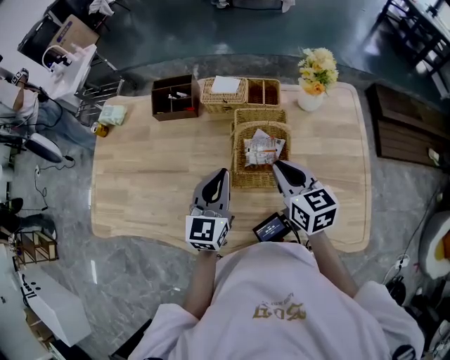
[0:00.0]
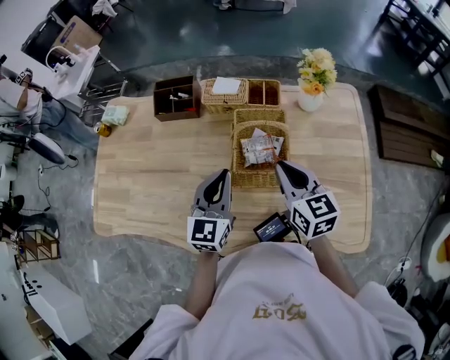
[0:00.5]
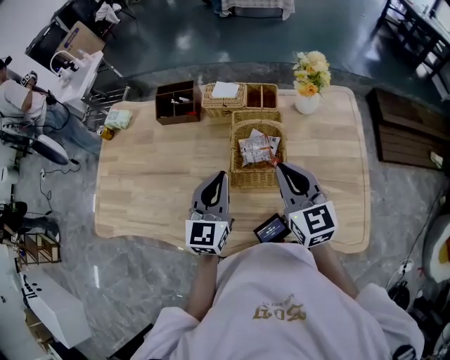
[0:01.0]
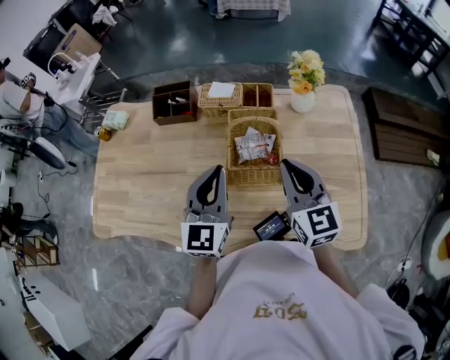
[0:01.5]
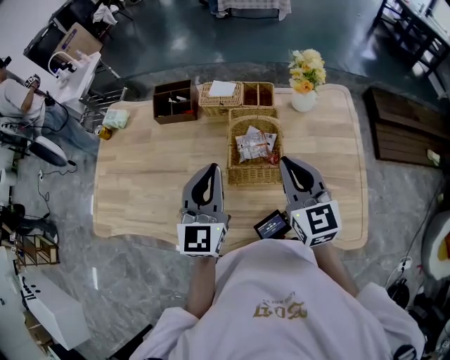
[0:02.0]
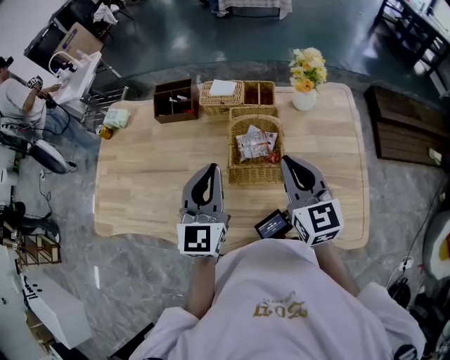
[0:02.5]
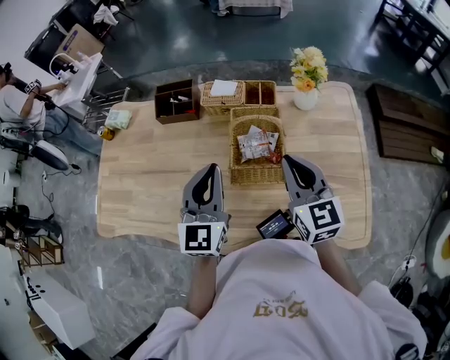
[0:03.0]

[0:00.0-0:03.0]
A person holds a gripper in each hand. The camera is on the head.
0.0 to 1.5 s: The grippers both shift upward by approximately 10 cm. The right gripper swivels some 20 degrees.
1.5 to 3.0 s: The grippers make only small movements.

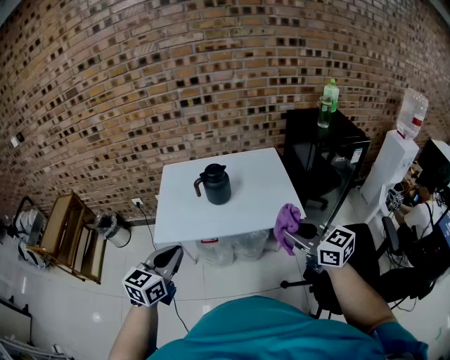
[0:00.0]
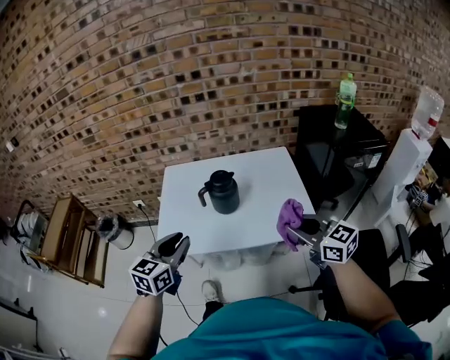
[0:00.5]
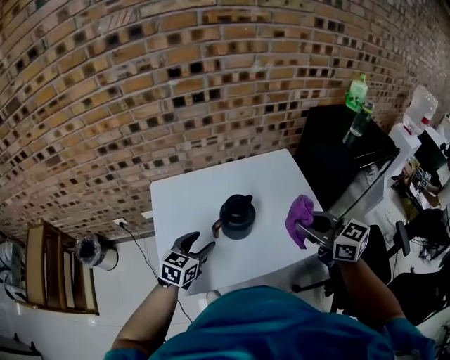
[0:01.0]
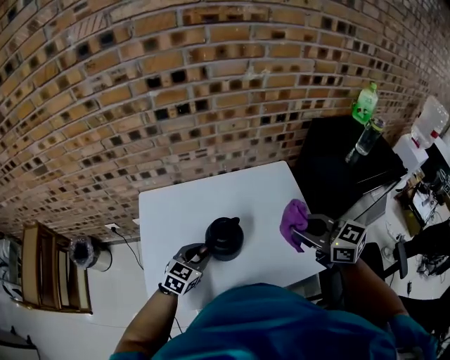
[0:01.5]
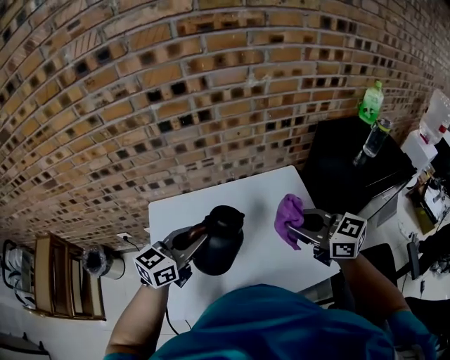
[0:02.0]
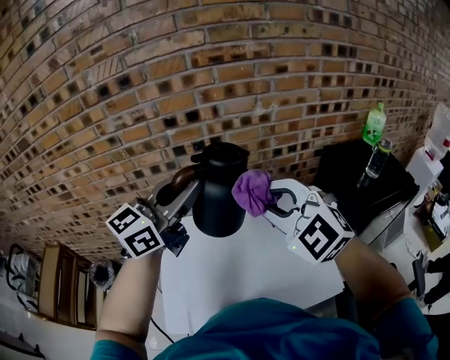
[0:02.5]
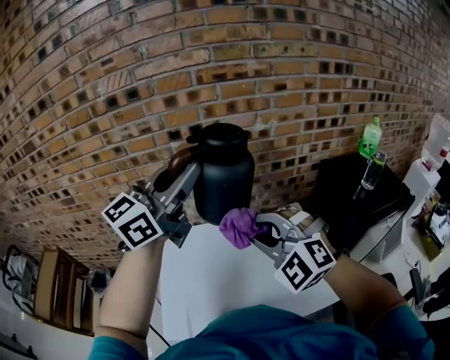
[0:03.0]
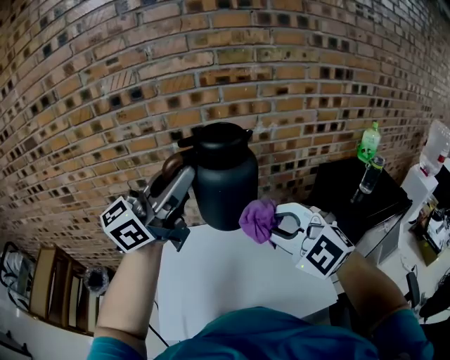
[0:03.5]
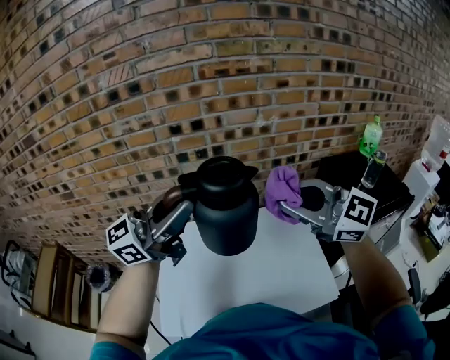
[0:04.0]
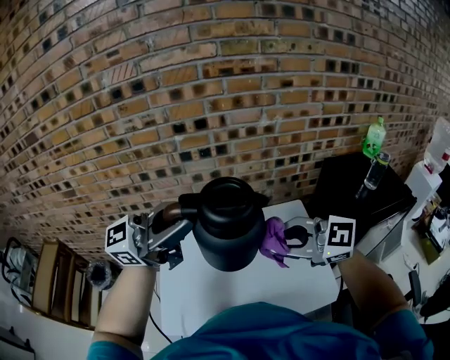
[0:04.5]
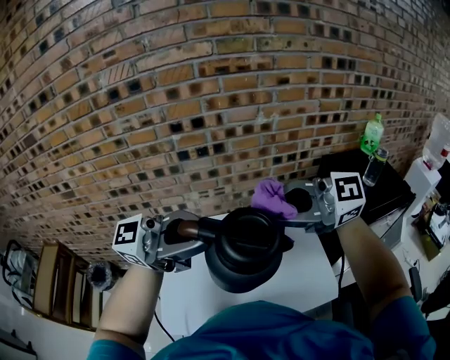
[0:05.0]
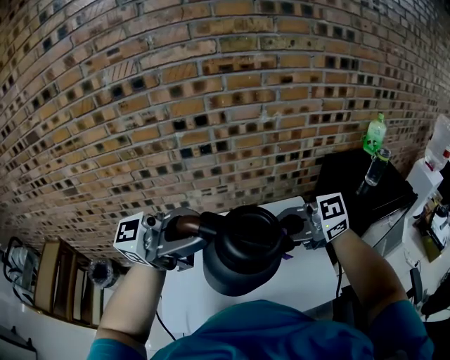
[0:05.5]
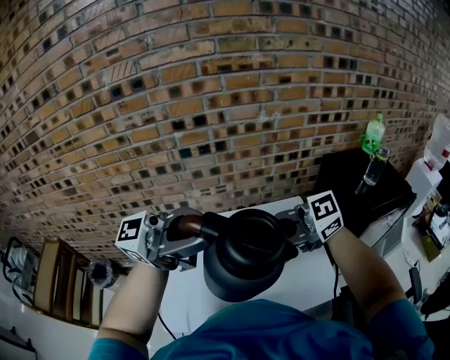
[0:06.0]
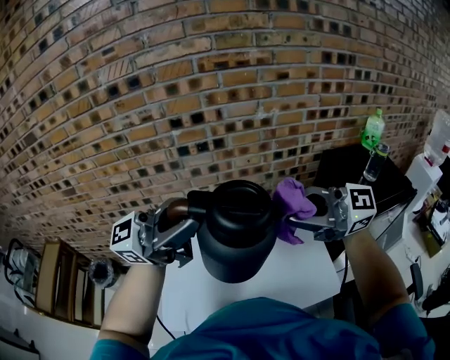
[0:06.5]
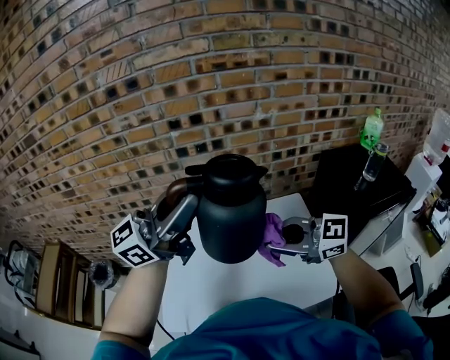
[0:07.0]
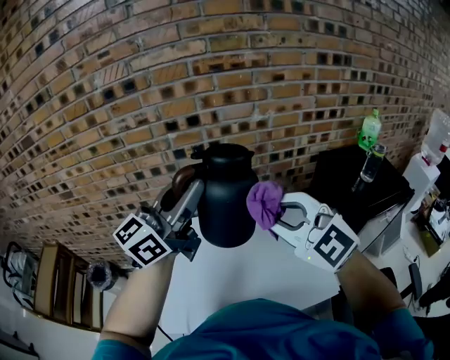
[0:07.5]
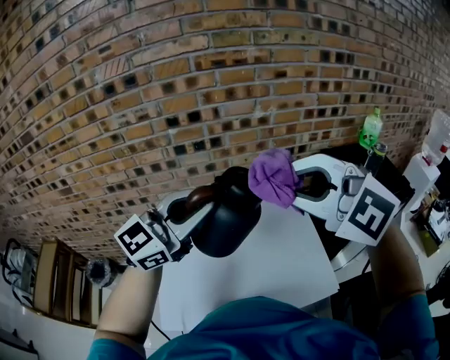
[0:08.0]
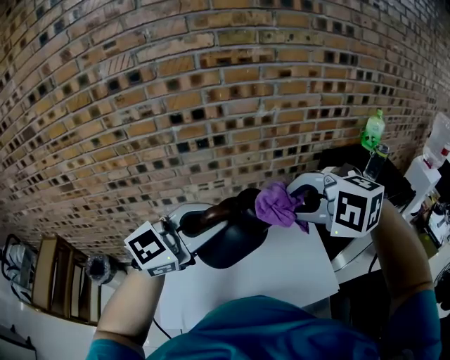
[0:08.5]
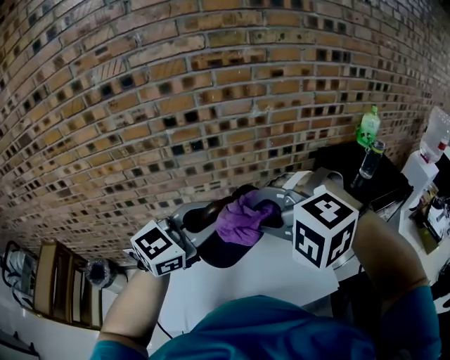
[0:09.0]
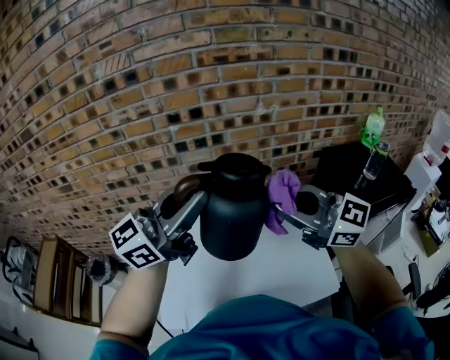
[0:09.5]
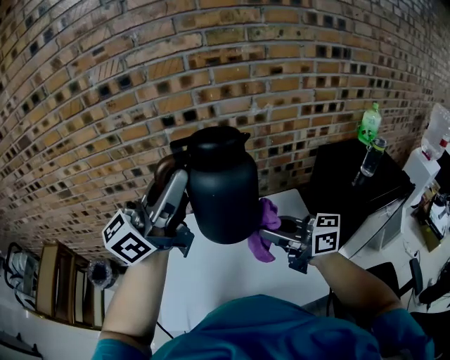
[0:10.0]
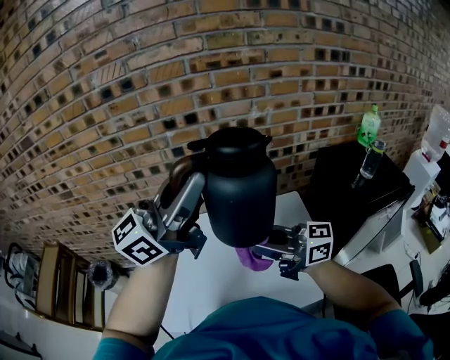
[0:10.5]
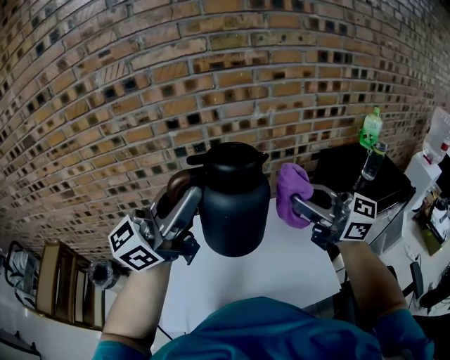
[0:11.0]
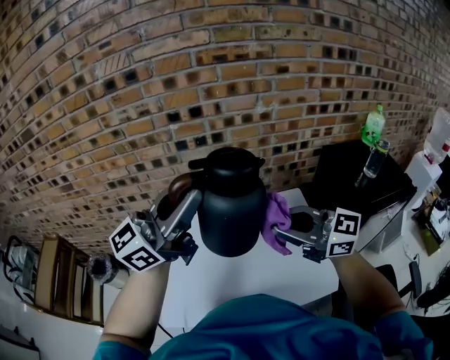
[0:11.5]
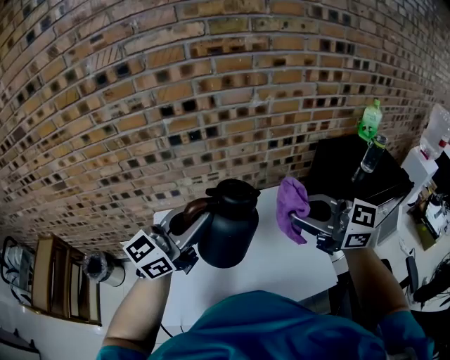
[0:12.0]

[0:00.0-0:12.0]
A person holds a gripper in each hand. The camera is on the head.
0.0 to 2.0 s: The grippers both shift forward by roughly 40 cm. The left gripper turns by about 20 degrees, and opens, then closes once more.
2.0 to 4.0 s: The two grippers go roughly 25 cm upward. The left gripper tips its fingers upward by approximately 30 degrees, while the right gripper turns by about 30 degrees.
4.0 to 6.0 s: The right gripper moves up and down over roughly 10 cm, changing direction 2 times, and rotates some 40 degrees. Meanwhile the left gripper ends up approximately 10 cm from where it was, and swivels approximately 30 degrees.
6.0 to 8.0 s: The left gripper changes place by about 10 cm, and turns by roughly 50 degrees; the right gripper moves up and down over about 20 cm, changing direction 2 times, and swivels approximately 60 degrees.
8.0 to 10.0 s: The right gripper moves downward, about 20 cm, and rolls clockwise, seen from behind, by about 70 degrees. The left gripper travels upward by some 5 cm, and rotates about 30 degrees.
10.0 to 12.0 s: The left gripper heads downward, covering some 15 cm. The right gripper changes its angle by some 20 degrees.

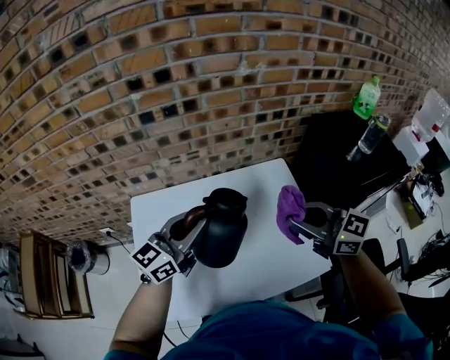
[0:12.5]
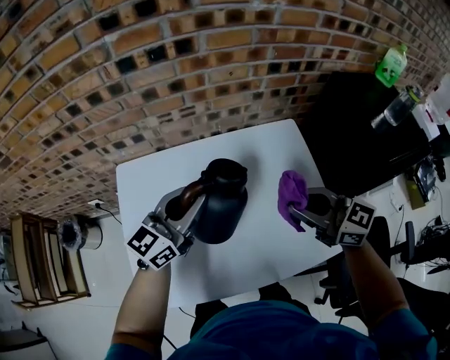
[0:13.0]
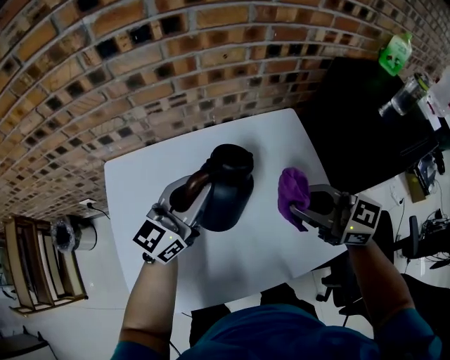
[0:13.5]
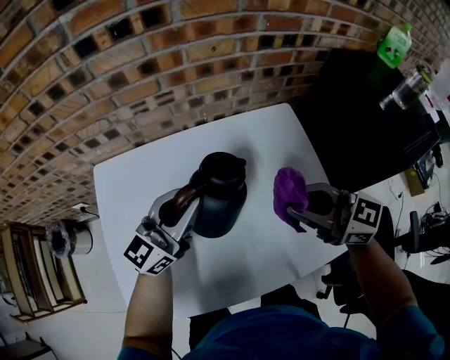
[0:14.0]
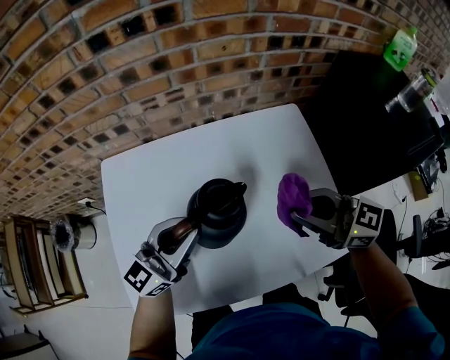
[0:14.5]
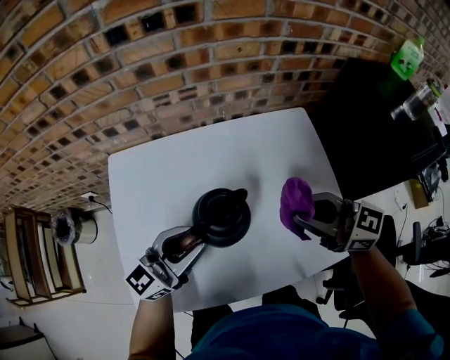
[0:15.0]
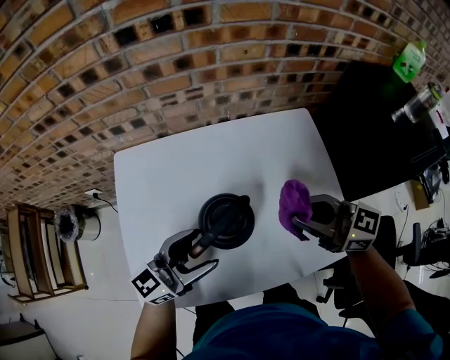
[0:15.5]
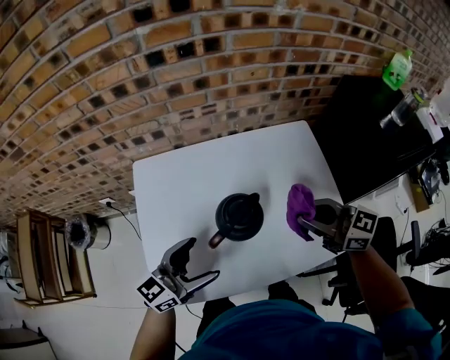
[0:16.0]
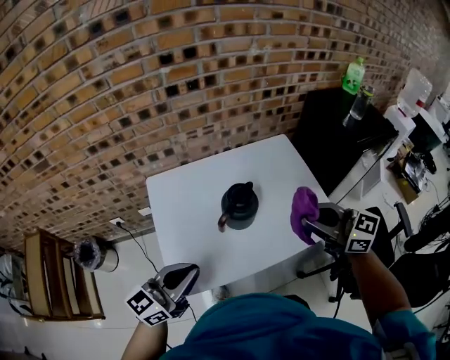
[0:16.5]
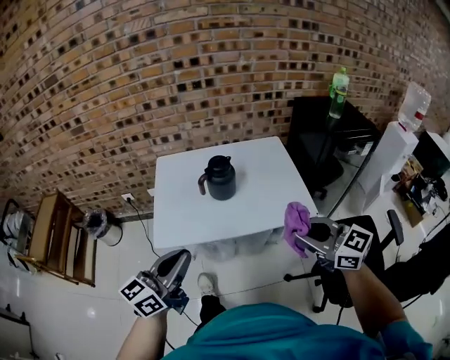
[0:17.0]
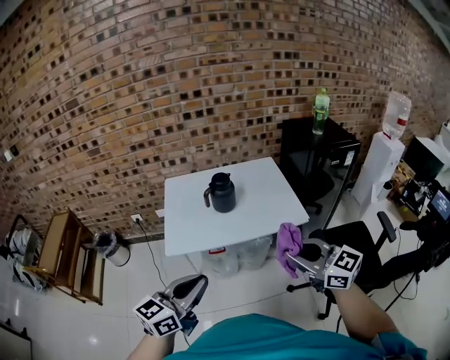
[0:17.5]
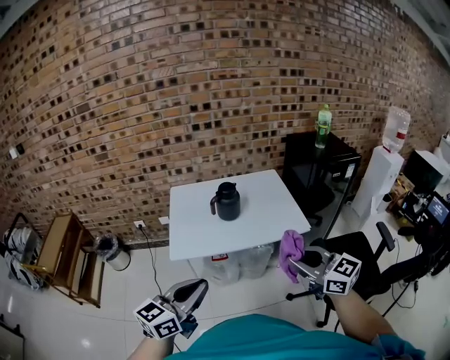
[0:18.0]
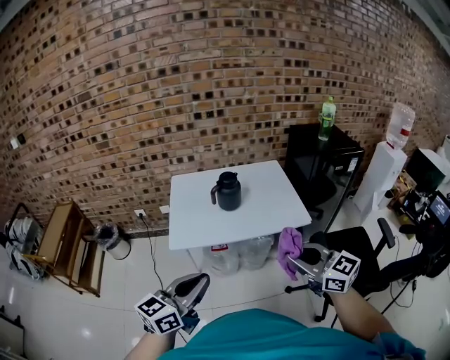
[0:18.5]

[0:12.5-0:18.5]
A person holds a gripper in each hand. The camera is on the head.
12.5 to 14.5 s: Both grippers move downward, some 15 cm.
14.5 to 16.5 s: The right gripper shifts approximately 20 cm backward and upward. Meanwhile the left gripper travels backward, to the left and upward by approximately 25 cm, and opens, then closes again.
16.5 to 18.5 s: The grippers both shift backward by approximately 35 cm.

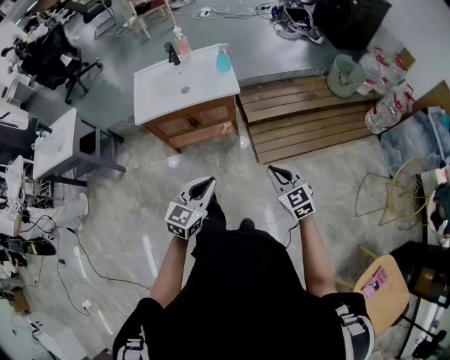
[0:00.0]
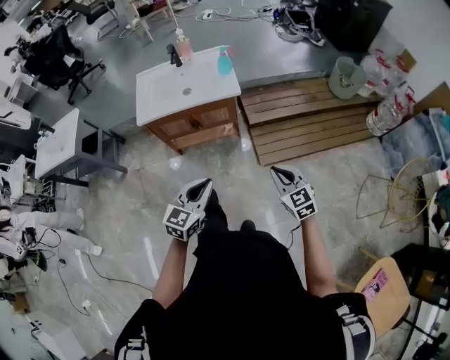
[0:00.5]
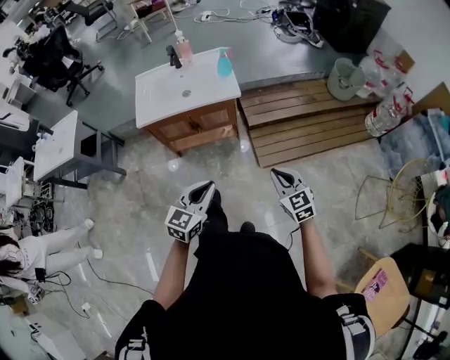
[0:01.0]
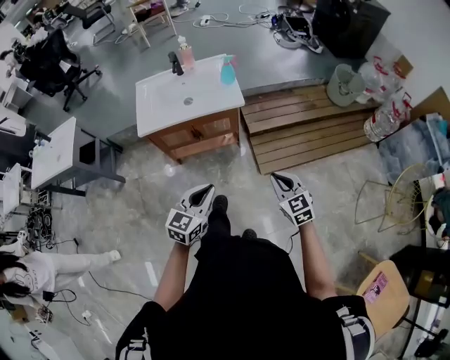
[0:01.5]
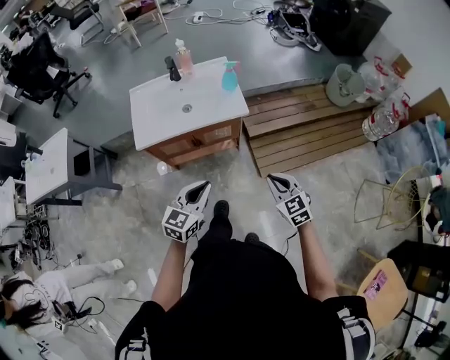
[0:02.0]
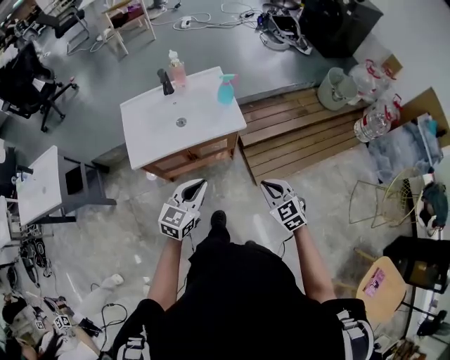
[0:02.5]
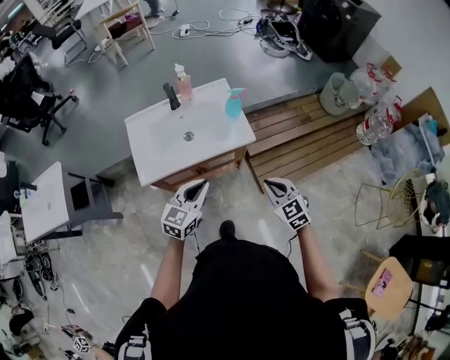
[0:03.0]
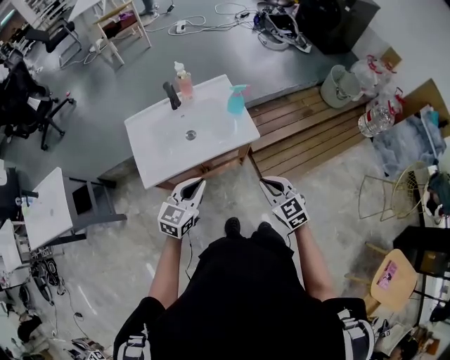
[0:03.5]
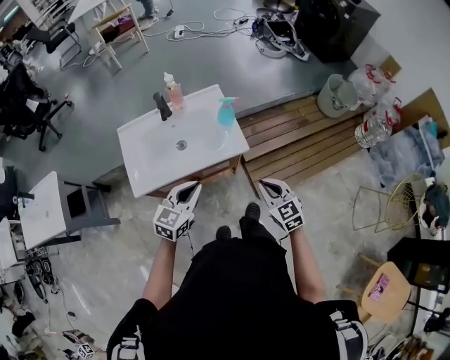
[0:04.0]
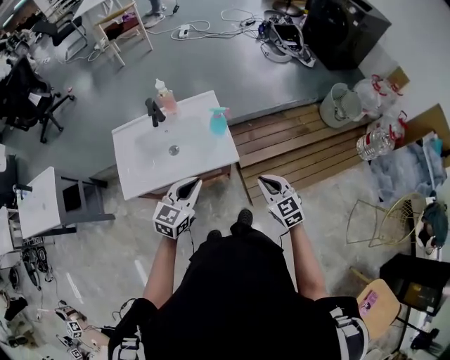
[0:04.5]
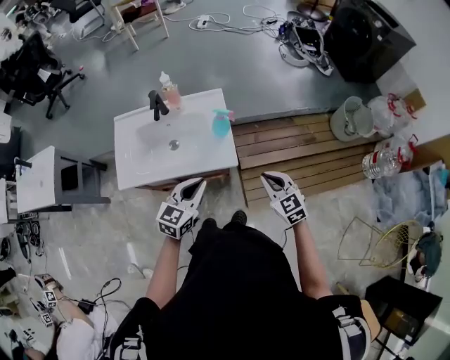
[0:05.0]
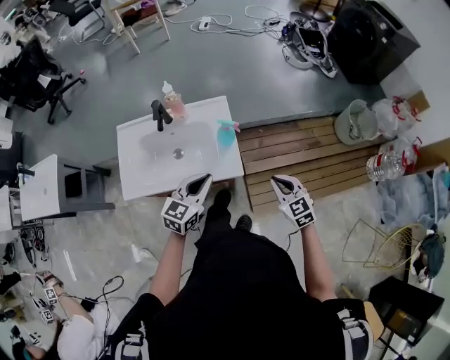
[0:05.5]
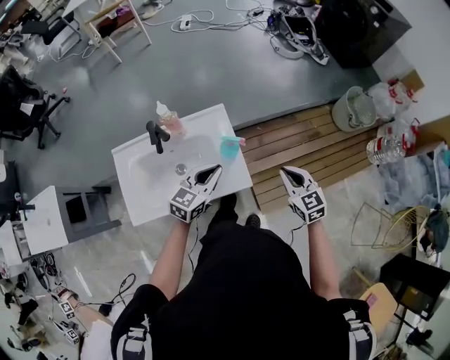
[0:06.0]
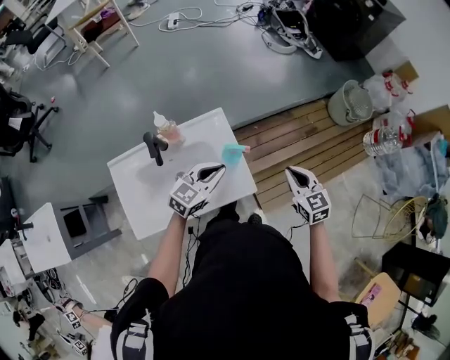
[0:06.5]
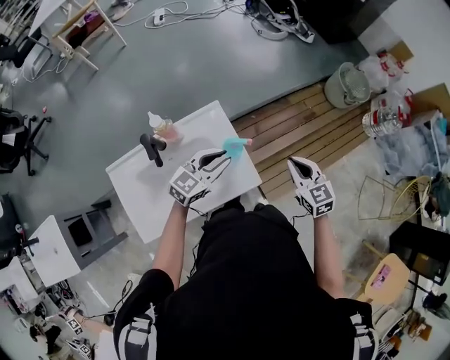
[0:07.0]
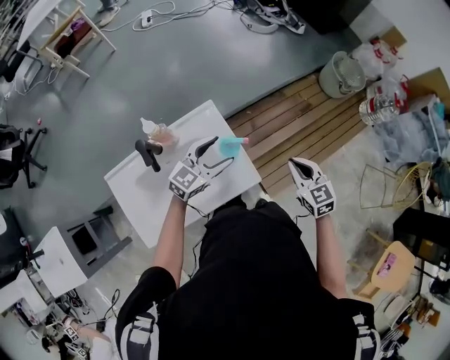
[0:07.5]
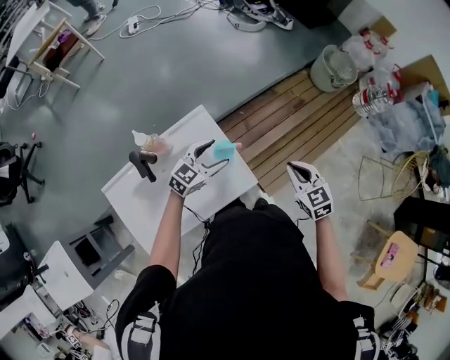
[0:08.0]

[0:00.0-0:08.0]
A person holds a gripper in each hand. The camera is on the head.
0.0 to 2.0 s: The two grippers go approximately 20 cm forward and to the left.
2.0 to 4.0 s: The two grippers go about 25 cm forward.
4.0 to 6.0 s: Both grippers travel together forward, some 30 cm.
6.0 to 8.0 s: The right gripper moves about 5 cm; the left gripper moves forward and downward, some 15 cm, turns by approximately 30 degrees, and opens.
